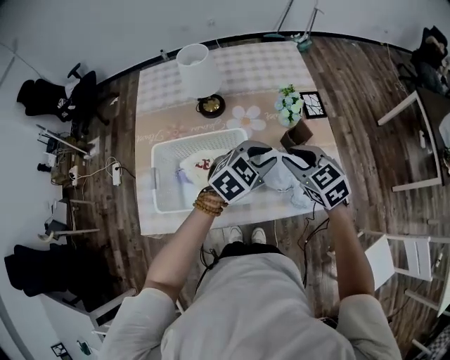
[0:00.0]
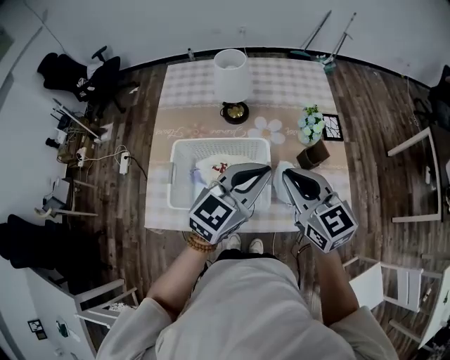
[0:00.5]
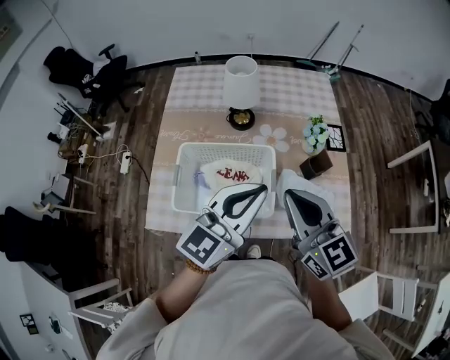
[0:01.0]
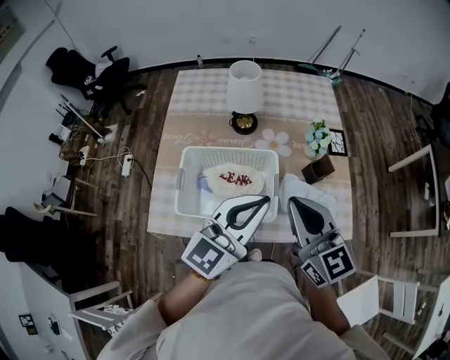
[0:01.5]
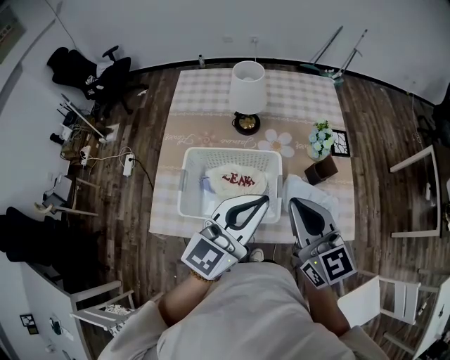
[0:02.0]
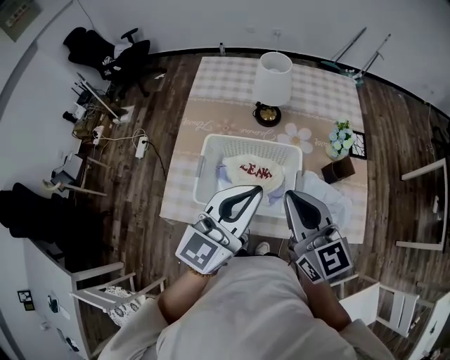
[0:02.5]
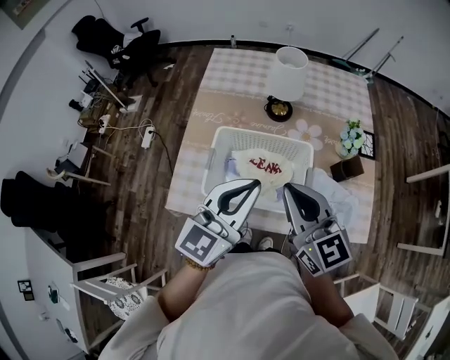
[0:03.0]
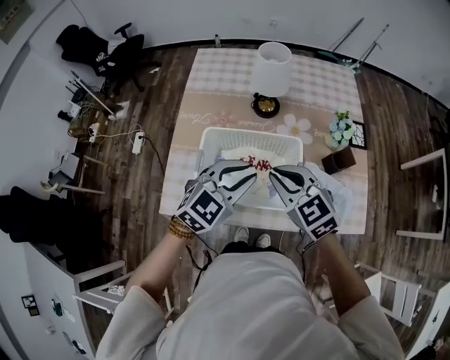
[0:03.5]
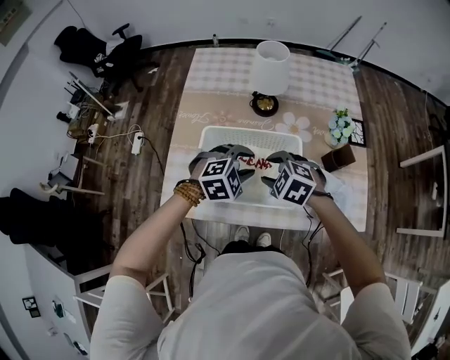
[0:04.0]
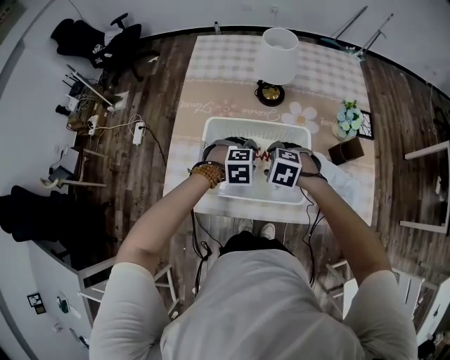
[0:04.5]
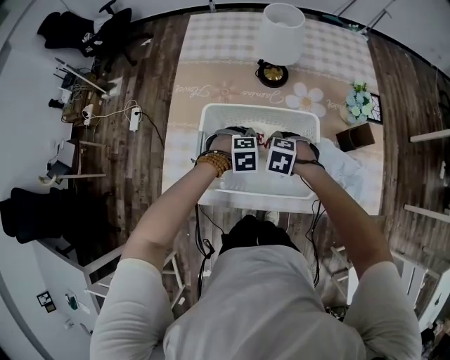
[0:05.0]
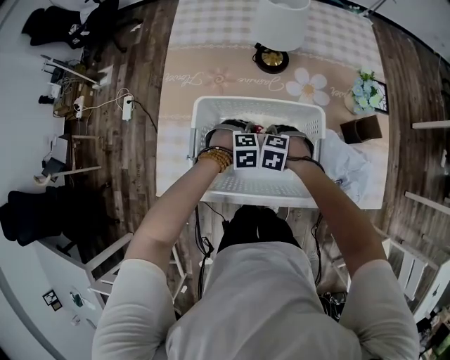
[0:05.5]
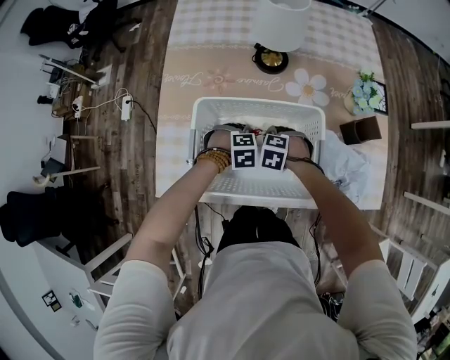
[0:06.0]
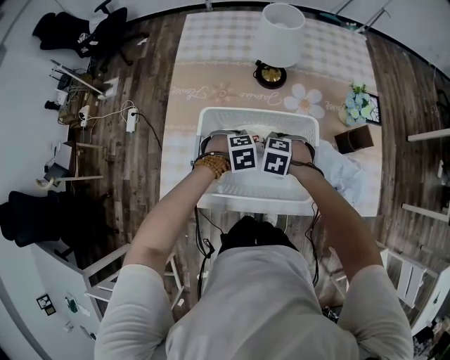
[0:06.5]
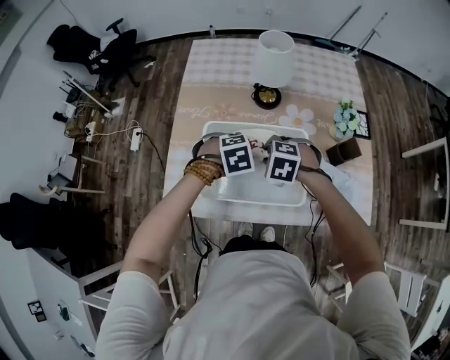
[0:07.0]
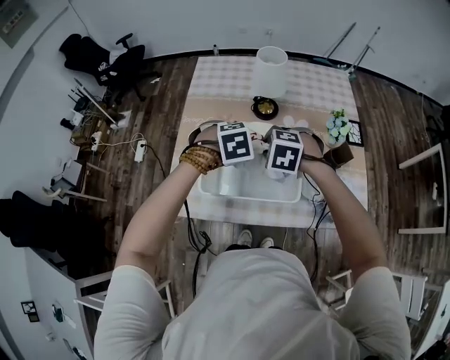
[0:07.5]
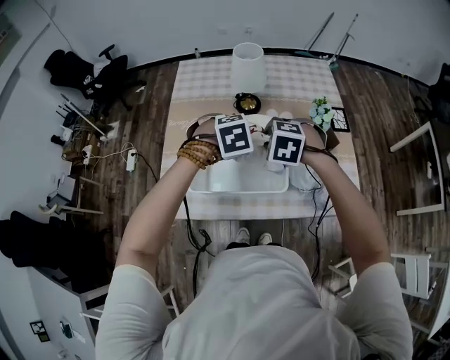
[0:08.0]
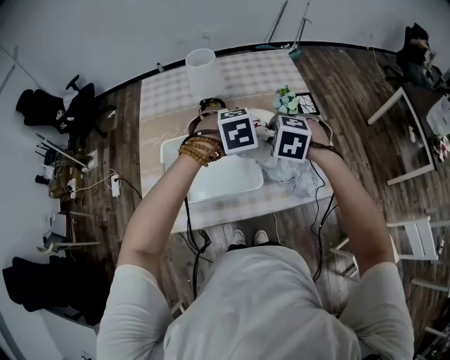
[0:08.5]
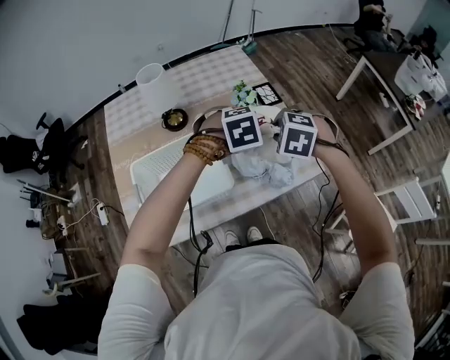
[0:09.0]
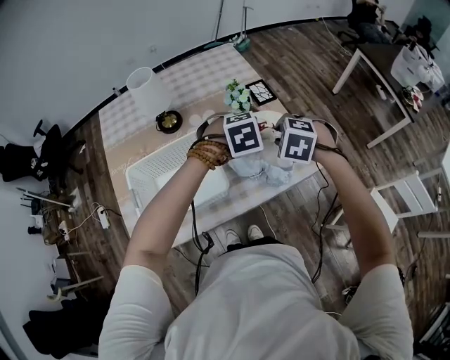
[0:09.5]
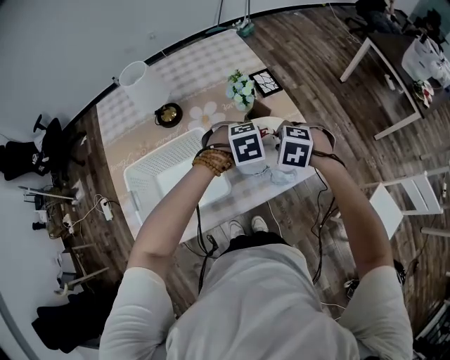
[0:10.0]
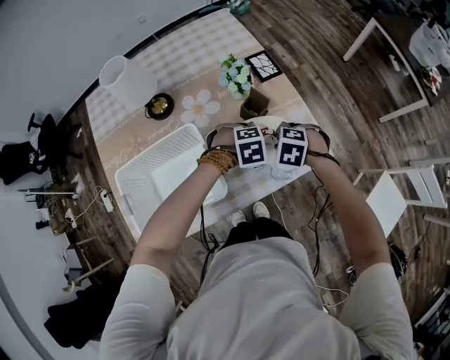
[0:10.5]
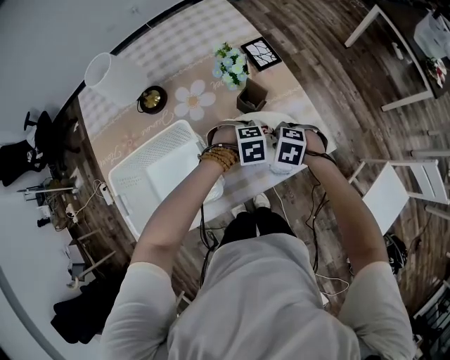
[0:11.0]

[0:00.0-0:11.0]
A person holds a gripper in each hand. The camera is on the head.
0:00.0 to 0:02.0: The grippers both shift upward, to the left and backward by some 20 cm. The left gripper angles its fingers upward, by roughly 40 degrees, and closes. The right gripper angles its fingers upward, by about 30 degrees, and closes.
0:02.0 to 0:03.5: The right gripper travels to the left and downward by some 15 cm, and changes its angle by roughly 30 degrees, while the left gripper travels downward and to the left by about 15 cm, and rotates about 30 degrees.
0:03.5 to 0:05.5: Both grippers travel together downward, approximately 35 cm. The right gripper points its fingers about 50 degrees further downward, and opens; the left gripper tips its fingers downward by roughly 50 degrees, and opens up.
0:05.5 to 0:07.5: Both grippers travel together upward, roughly 25 cm. The right gripper closes its fingers. The left gripper closes up.
0:07.5 to 0:09.0: The right gripper shifts by roughly 30 cm, and turns by approximately 30 degrees. The left gripper moves roughly 30 cm, and changes its angle by some 30 degrees.
0:09.0 to 0:11.0: Both grippers travel together downward, roughly 25 cm.

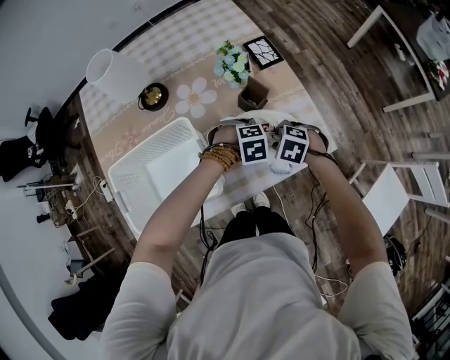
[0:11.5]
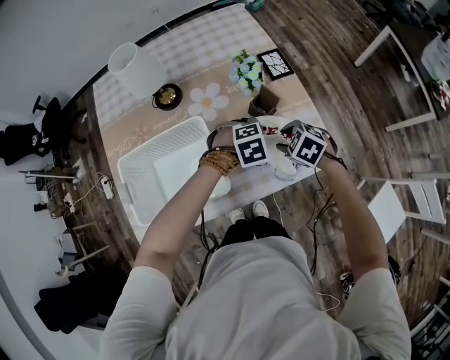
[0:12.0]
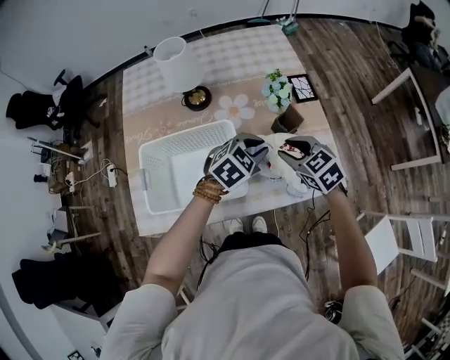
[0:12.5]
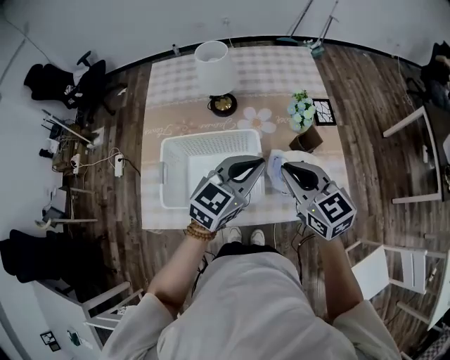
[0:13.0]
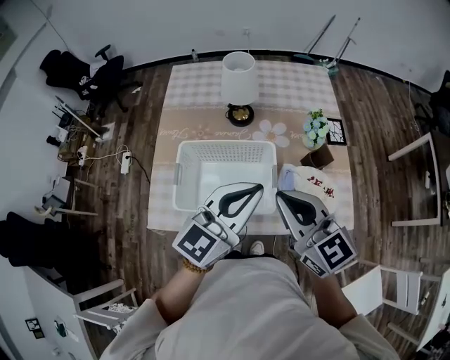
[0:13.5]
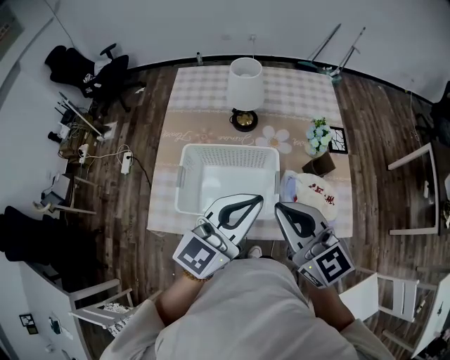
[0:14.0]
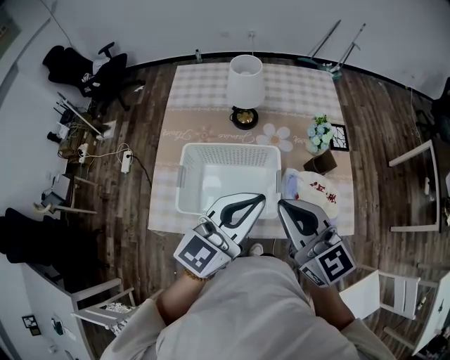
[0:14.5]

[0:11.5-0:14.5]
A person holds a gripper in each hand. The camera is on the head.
0:11.5 to 0:13.0: Both grippers move upward, some 30 cm. The right gripper points its fingers approximately 50 degrees further upward, and closes up. Meanwhile the left gripper points its fingers about 60 degrees further upward.
0:13.0 to 0:14.5: The grippers both shift upward, to the left and backward by roughly 10 cm.

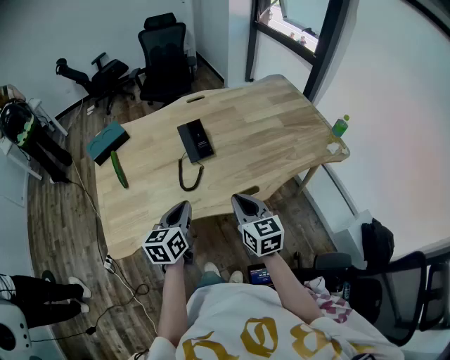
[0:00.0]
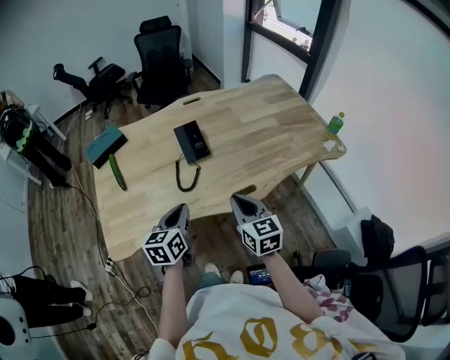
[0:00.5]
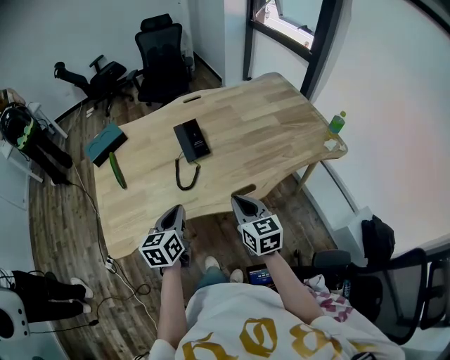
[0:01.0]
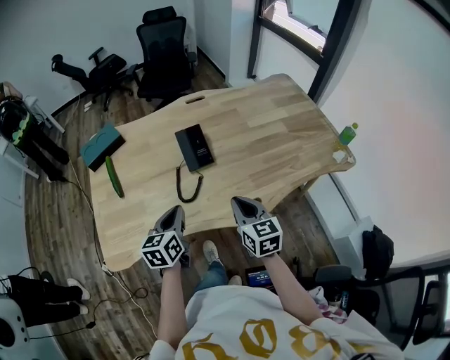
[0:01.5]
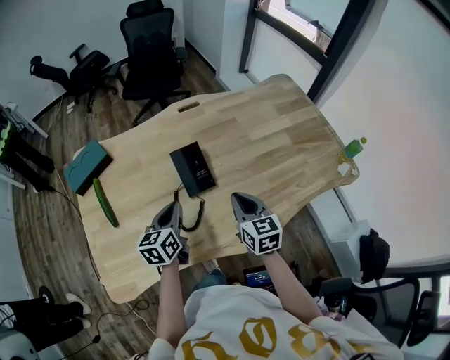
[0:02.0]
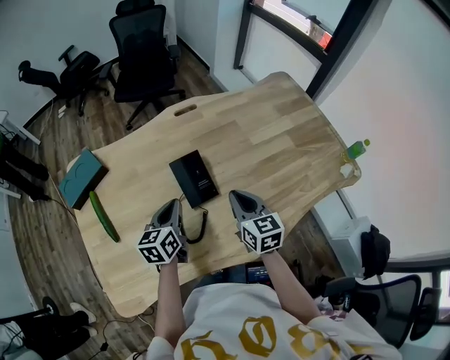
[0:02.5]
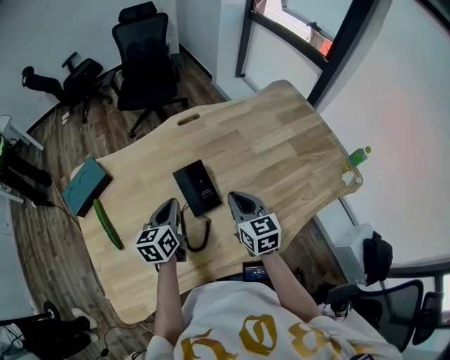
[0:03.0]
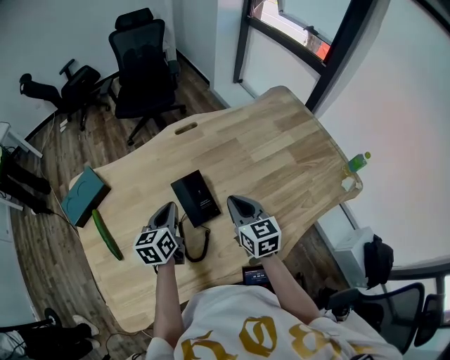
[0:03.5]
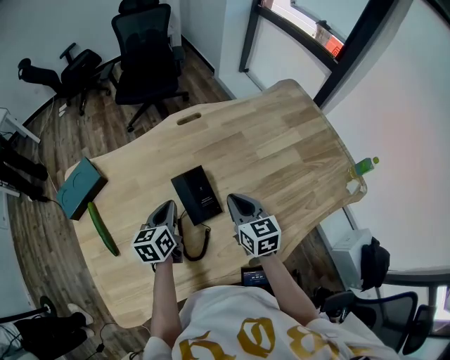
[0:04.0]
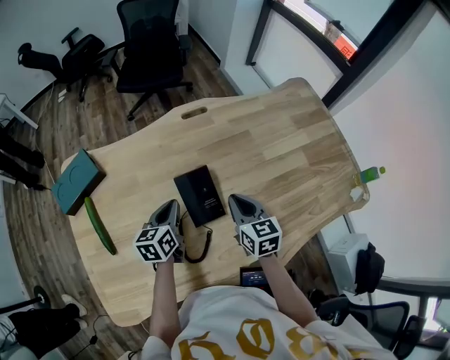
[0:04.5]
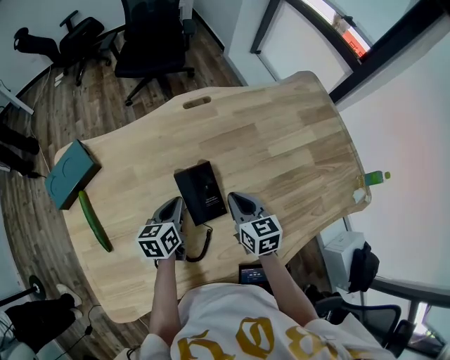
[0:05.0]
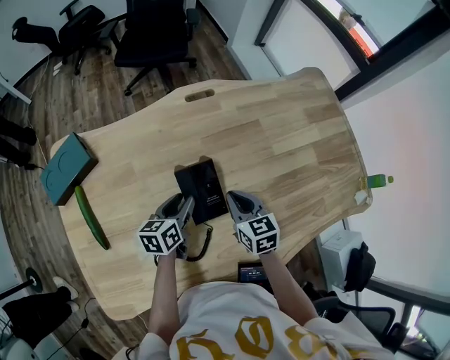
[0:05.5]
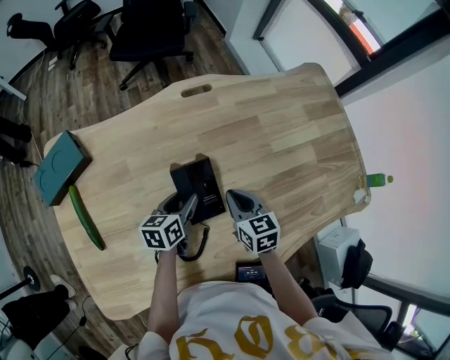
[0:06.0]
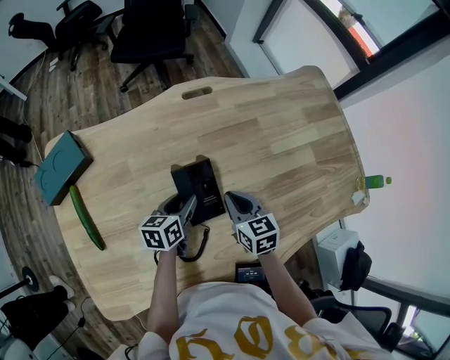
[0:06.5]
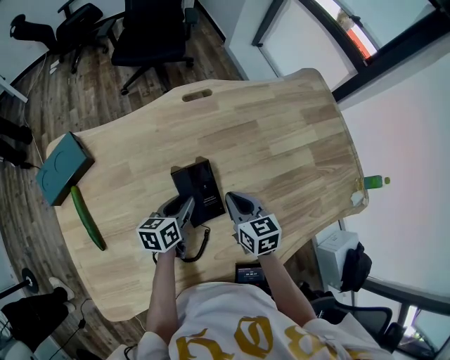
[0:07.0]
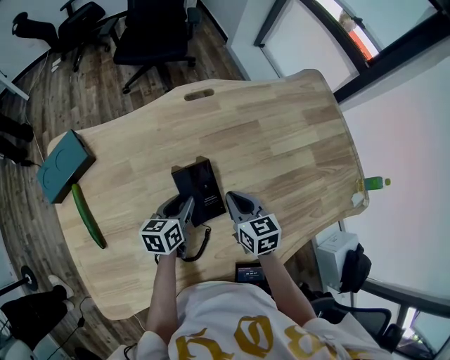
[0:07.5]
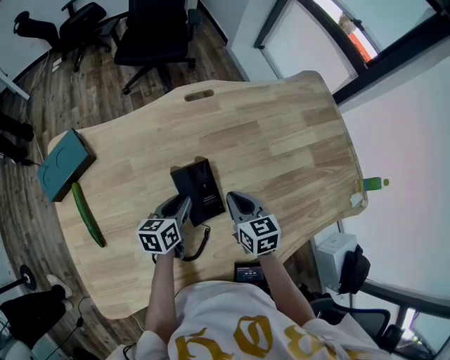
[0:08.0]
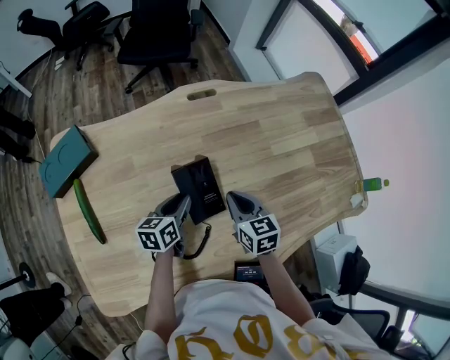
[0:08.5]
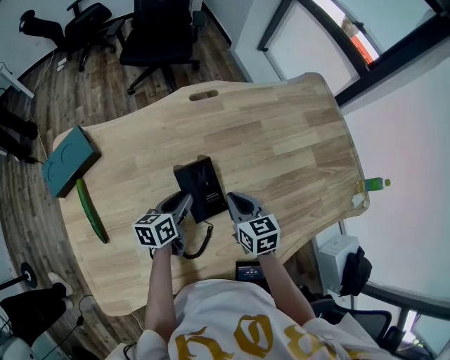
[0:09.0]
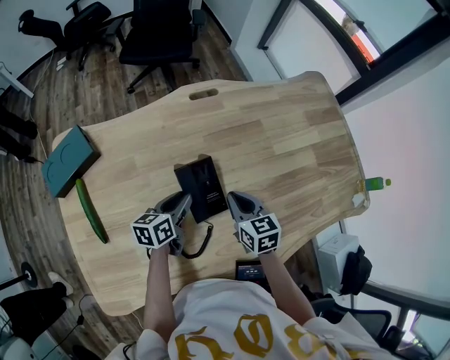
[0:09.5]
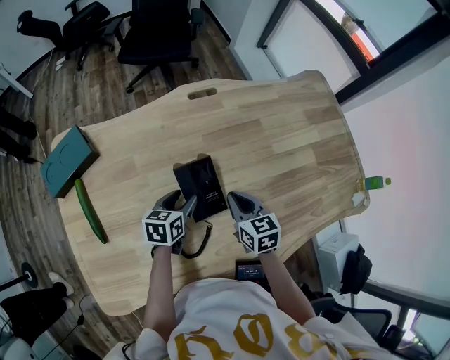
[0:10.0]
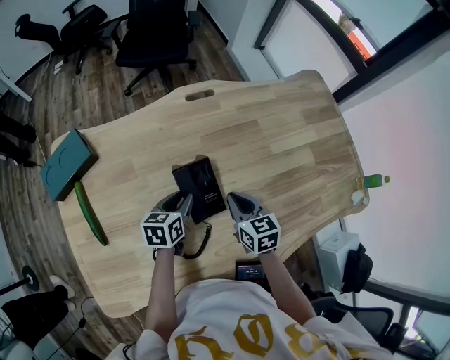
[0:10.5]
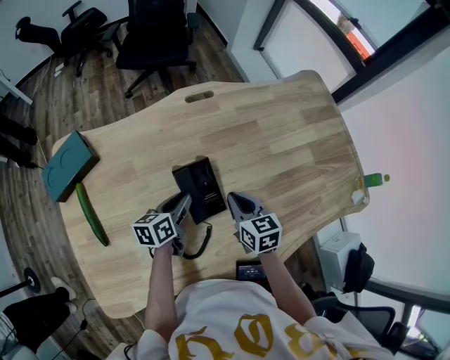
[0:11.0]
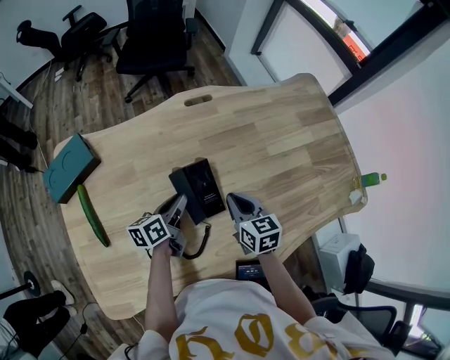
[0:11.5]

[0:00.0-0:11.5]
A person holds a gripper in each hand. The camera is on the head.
0:00.0 to 0:02.0: The grippers both shift forward by approximately 20 cm.
0:02.0 to 0:04.0: Both grippers move forward, about 10 cm.
0:04.0 to 0:06.0: The two grippers go some 10 cm downward. The left gripper opens its fingers.
0:06.0 to 0:09.5: The grippers stay close to where they were, moving slightly.
0:09.5 to 0:11.5: The left gripper opens, then closes once more.

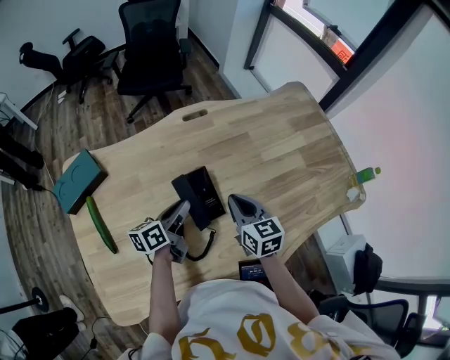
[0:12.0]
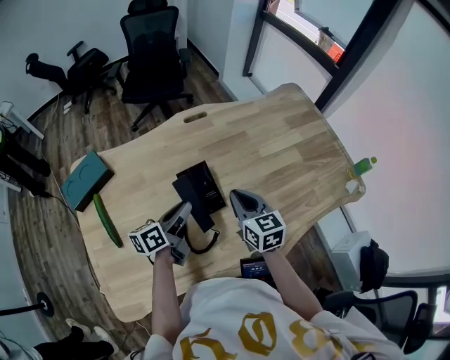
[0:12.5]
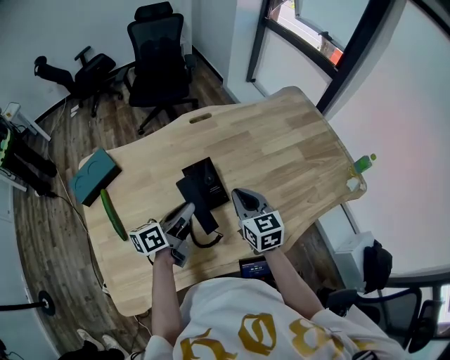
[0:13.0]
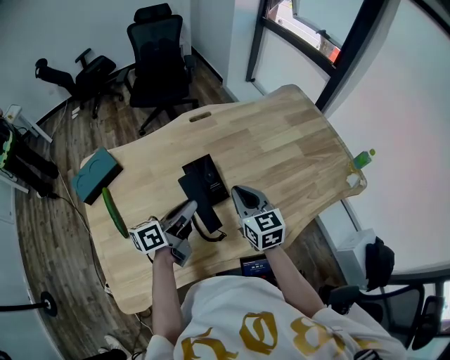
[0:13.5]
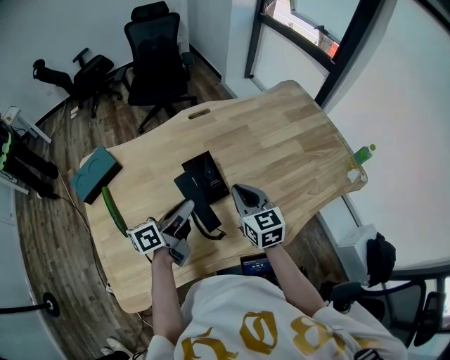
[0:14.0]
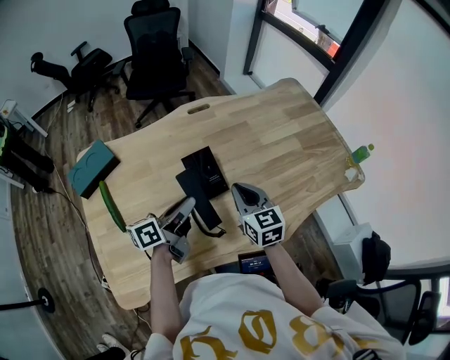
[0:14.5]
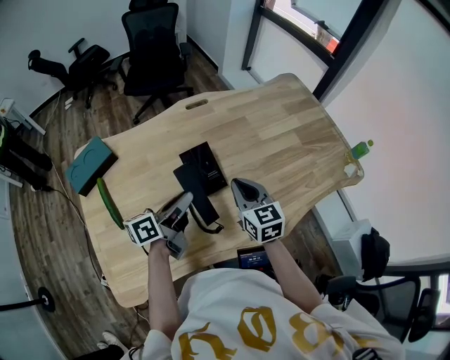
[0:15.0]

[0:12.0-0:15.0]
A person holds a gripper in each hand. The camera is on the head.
0:12.0 to 0:13.5: The left gripper moves upward and backward, approximately 10 cm. Meanwhile the right gripper shifts approximately 5 cm backward.
0:13.5 to 0:15.0: Both grippers stay about where they are.
